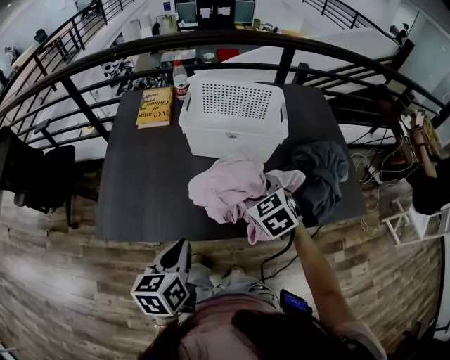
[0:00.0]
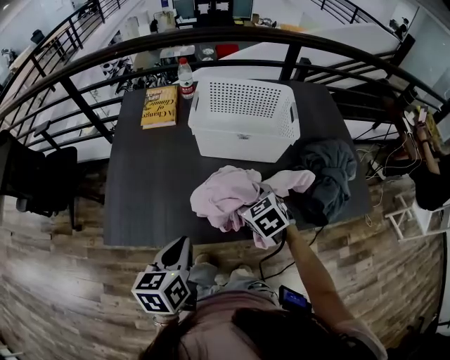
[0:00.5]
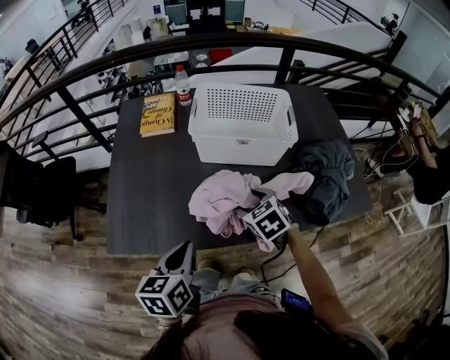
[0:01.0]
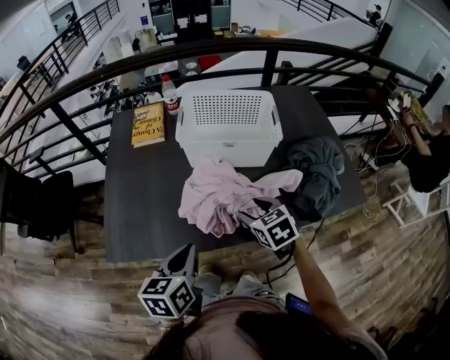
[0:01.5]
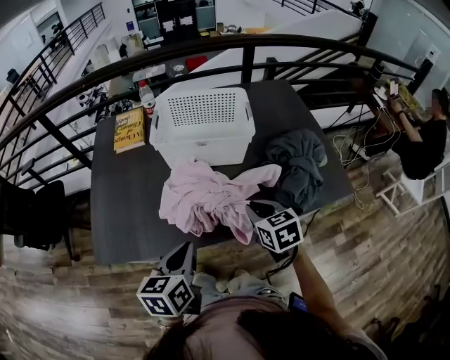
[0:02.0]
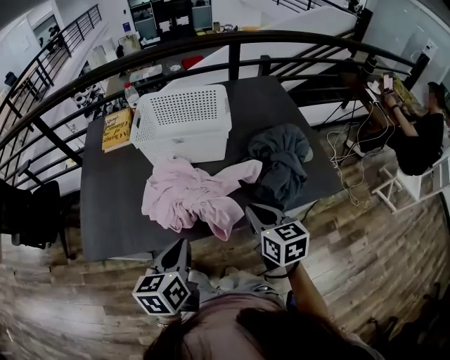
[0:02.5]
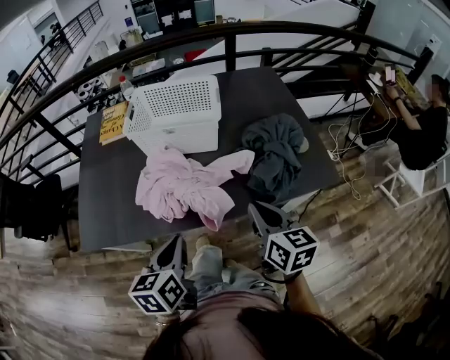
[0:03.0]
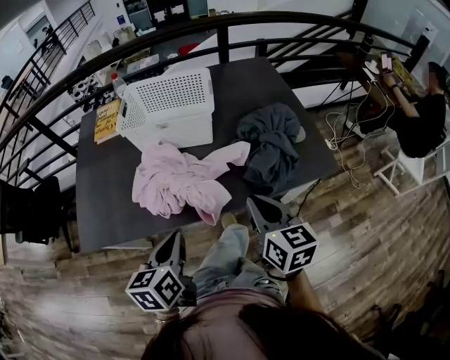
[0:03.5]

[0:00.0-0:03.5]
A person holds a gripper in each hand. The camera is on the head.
0:00.0 to 0:02.0: The right gripper heads to the right and backward, covering roughly 10 cm, and changes its angle by roughly 30 degrees. Meanwhile the left gripper moves to the right, about 5 cm.
0:02.0 to 0:03.5: The right gripper moves to the right, backward and upward, approximately 15 cm, and changes its angle by approximately 20 degrees, while the left gripper moves to the right, approximately 10 cm.

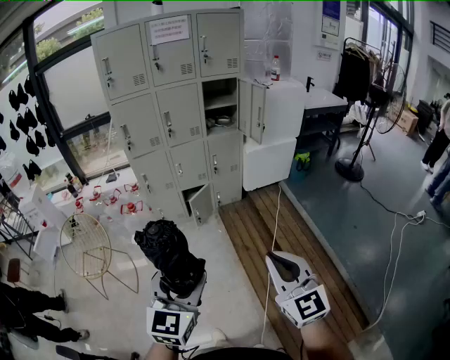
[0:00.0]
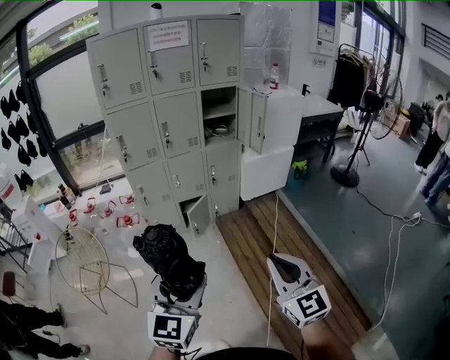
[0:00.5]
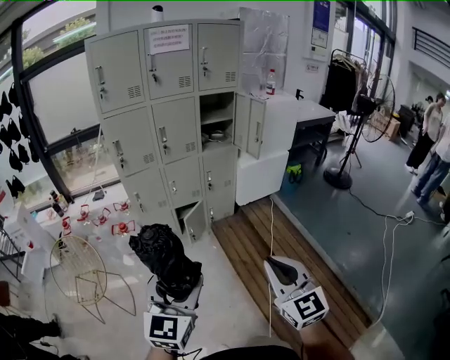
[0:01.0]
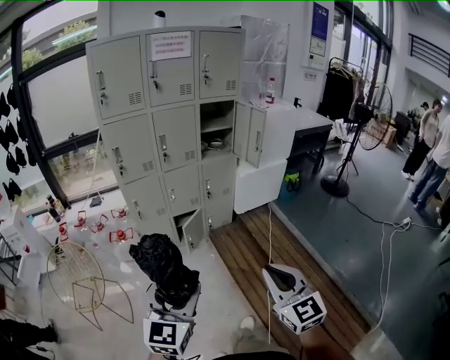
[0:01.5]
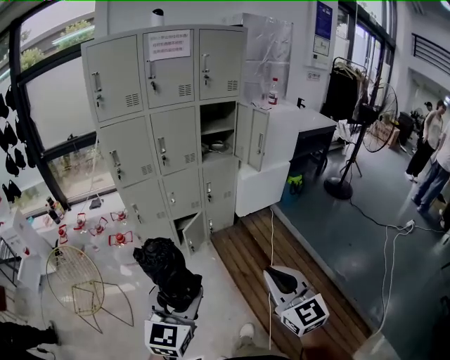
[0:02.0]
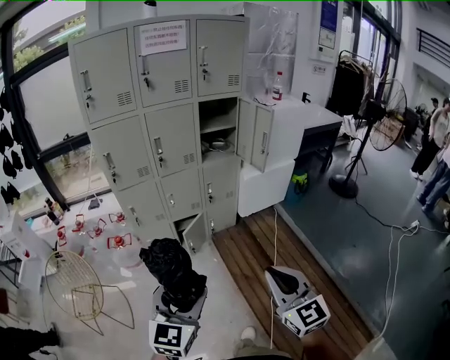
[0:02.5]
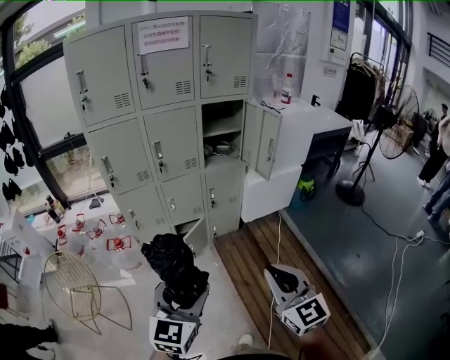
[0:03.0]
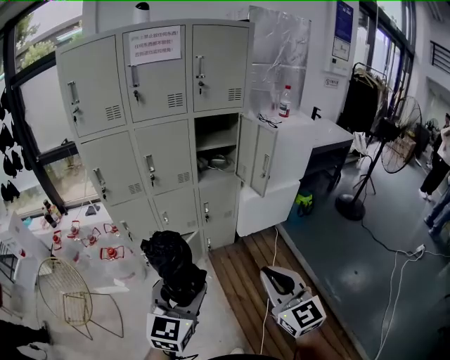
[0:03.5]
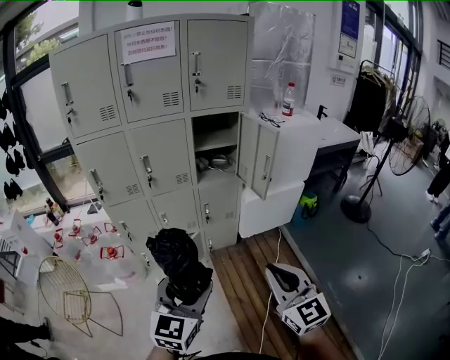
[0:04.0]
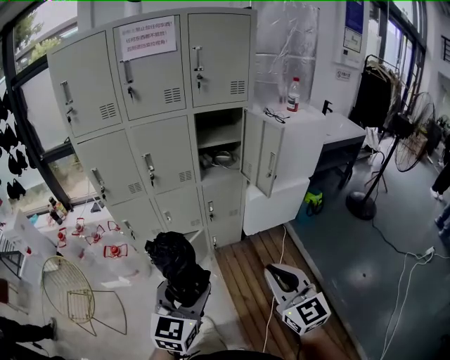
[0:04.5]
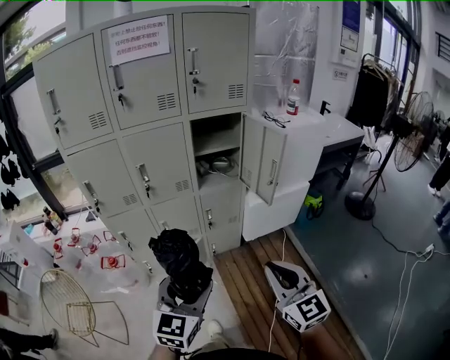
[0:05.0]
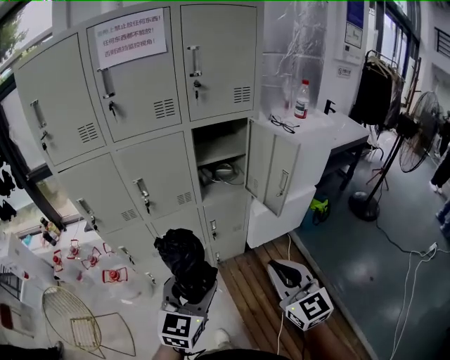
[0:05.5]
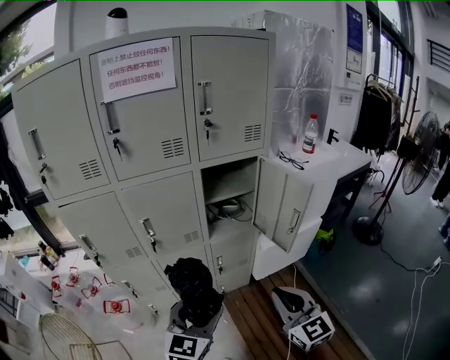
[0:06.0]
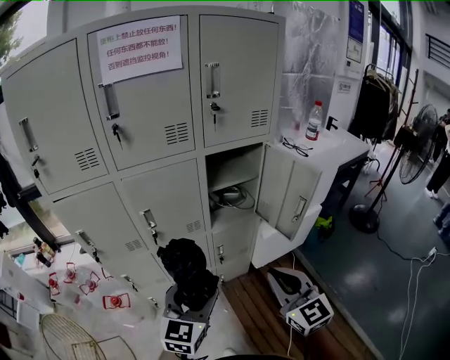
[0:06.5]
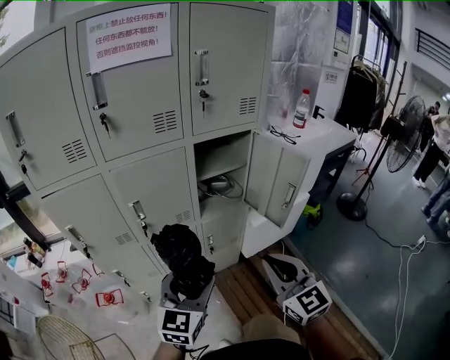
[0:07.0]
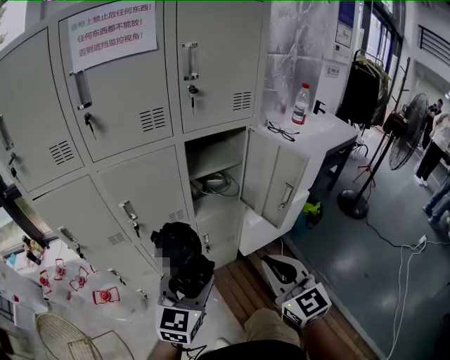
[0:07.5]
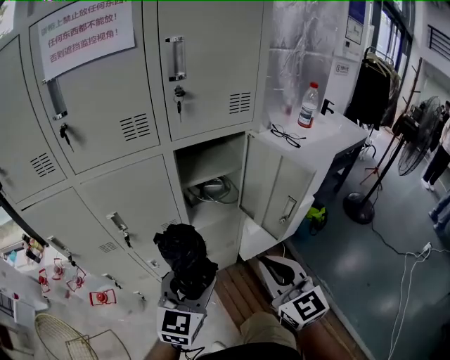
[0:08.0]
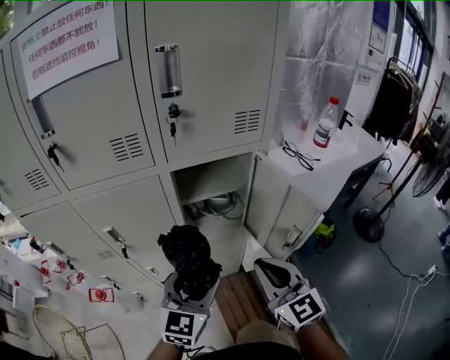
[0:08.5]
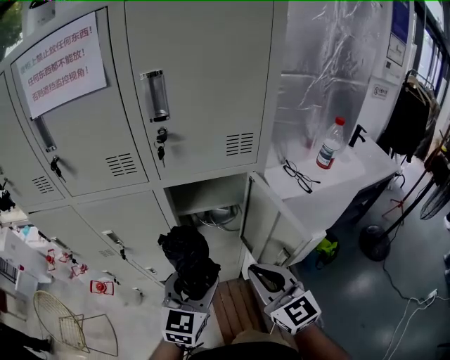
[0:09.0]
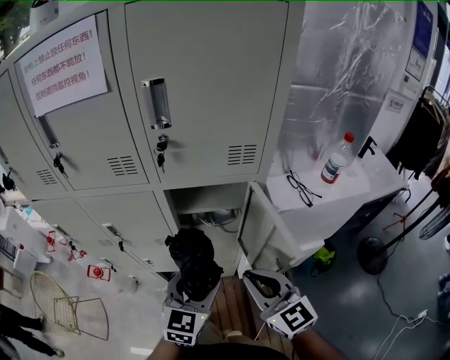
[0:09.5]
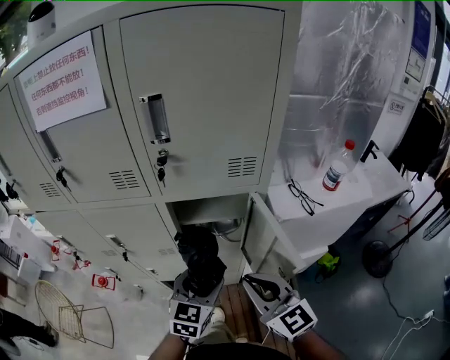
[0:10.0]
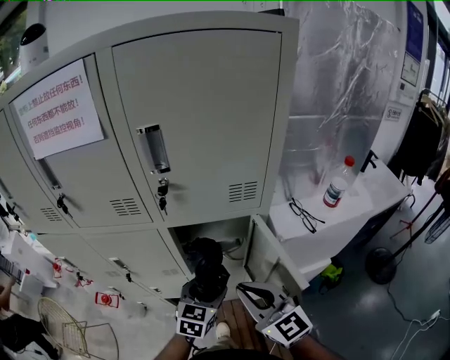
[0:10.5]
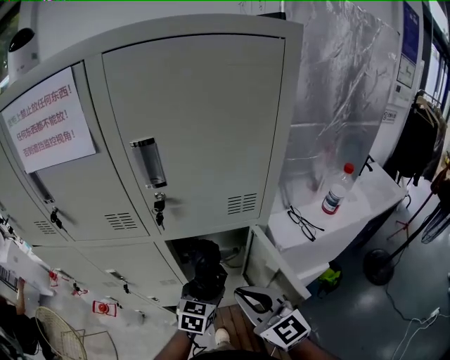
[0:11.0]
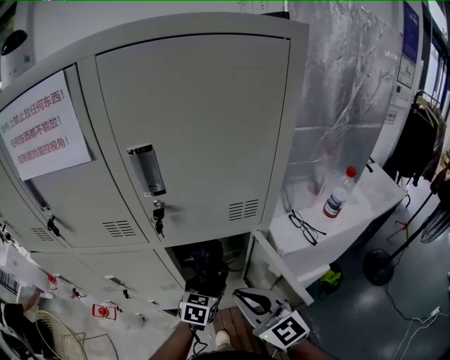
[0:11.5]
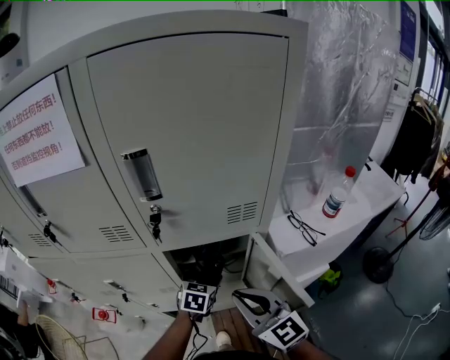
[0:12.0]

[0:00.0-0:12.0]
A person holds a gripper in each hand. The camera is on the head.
0:00.0 to 0:02.0: The grippers both shift forward and to the left by roughly 15 cm.
0:02.0 to 0:04.0: Both grippers move forward and to the right, approximately 30 cm.
0:04.0 to 0:06.0: The two grippers go some 25 cm forward.
0:06.0 to 0:08.0: The grippers both shift forward by roughly 10 cm.
0:08.0 to 0:10.0: The right gripper heads forward, to the right and upward, covering some 15 cm, and changes its angle by roughly 30 degrees, while the left gripper travels forward and to the right by approximately 20 cm.
0:10.0 to 0:12.0: The right gripper is displaced forward by approximately 10 cm. Meanwhile the left gripper heads forward and downward, covering roughly 20 cm.

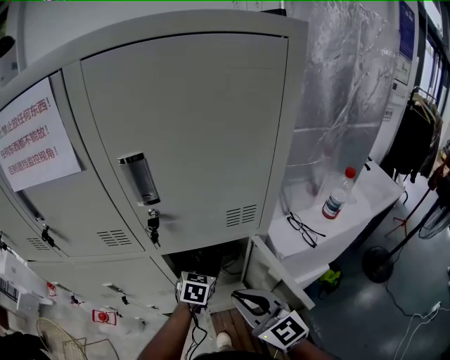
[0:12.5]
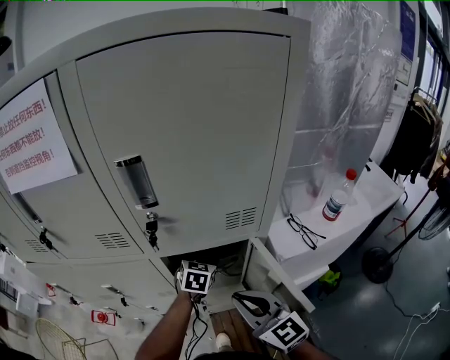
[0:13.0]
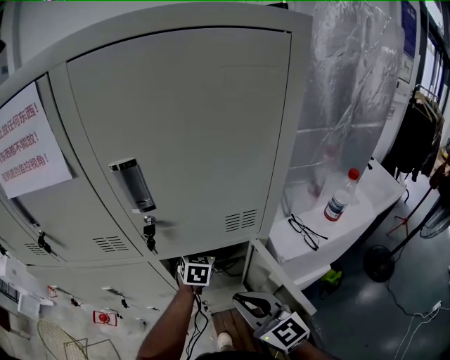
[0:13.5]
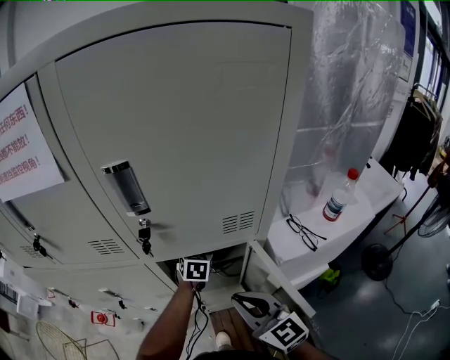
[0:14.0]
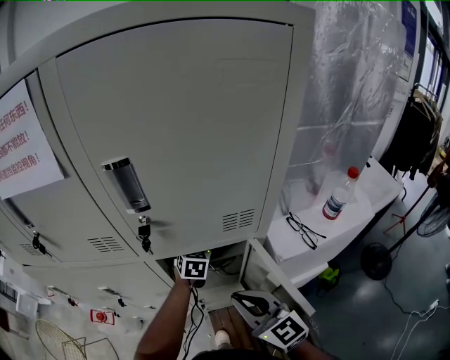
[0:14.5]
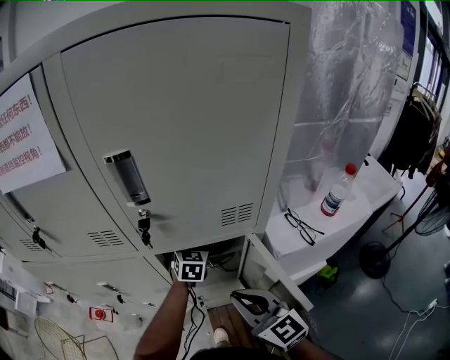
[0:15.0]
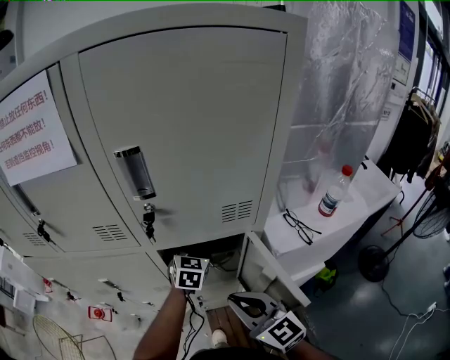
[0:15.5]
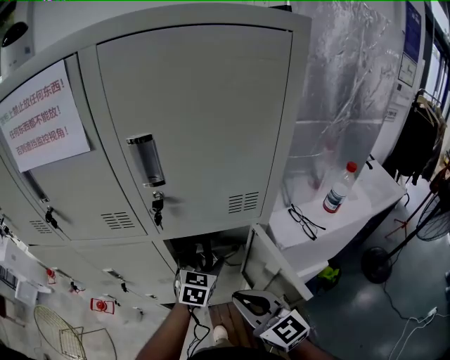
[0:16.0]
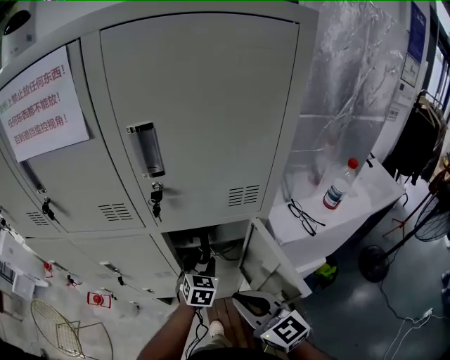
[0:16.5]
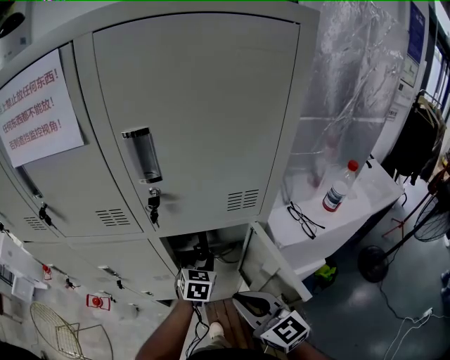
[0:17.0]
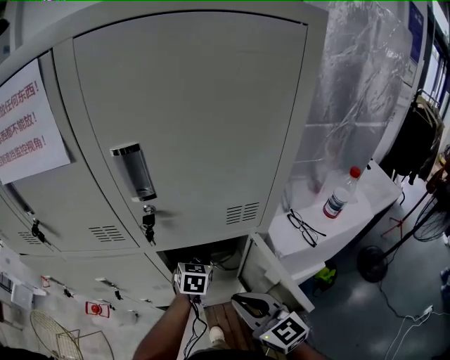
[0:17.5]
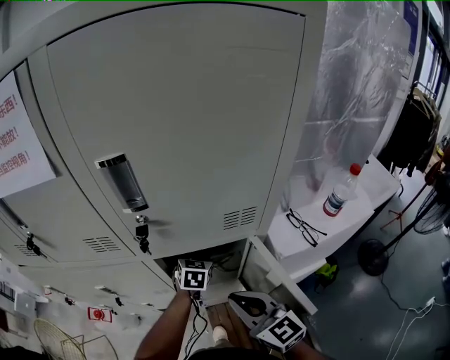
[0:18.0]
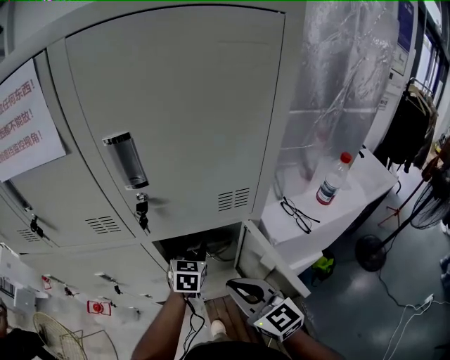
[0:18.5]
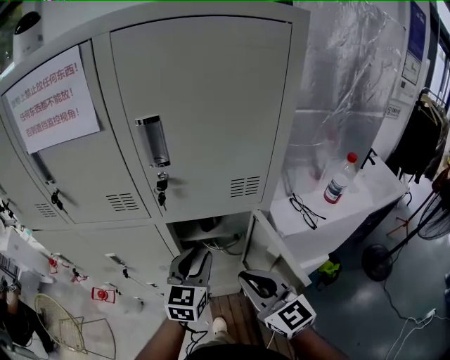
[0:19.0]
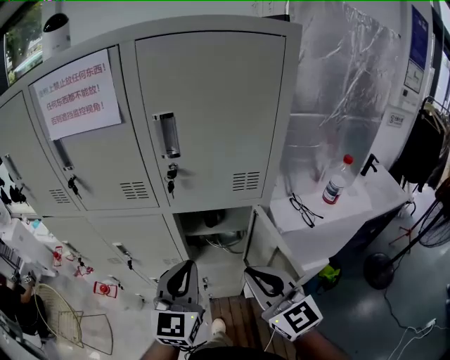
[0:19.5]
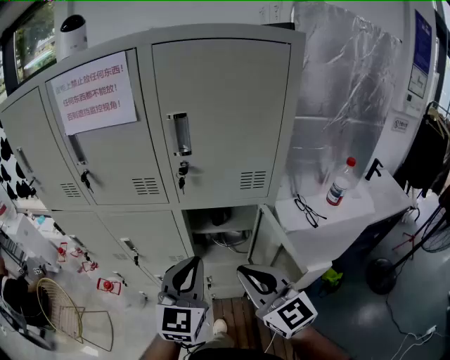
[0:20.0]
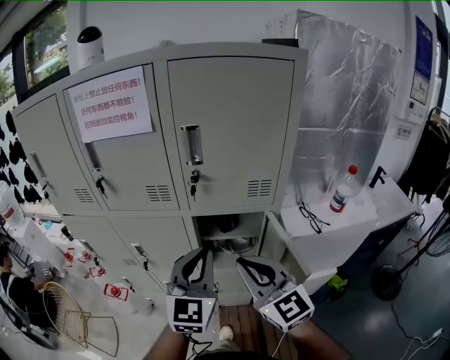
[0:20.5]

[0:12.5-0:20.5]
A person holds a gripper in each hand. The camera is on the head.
0:12.5 to 0:14.5: The left gripper travels forward by roughly 10 cm.
0:14.5 to 0:16.5: The right gripper travels backward by roughly 5 cm. Meanwhile the left gripper heads backward, covering about 15 cm, and closes its fingers.
0:16.5 to 0:18.5: The left gripper heads forward, covering about 5 cm.
0:18.5 to 0:20.5: The right gripper heads upward and backward, covering some 15 cm, while the left gripper shifts about 30 cm upward and backward, swivels about 30 degrees, and closes up.

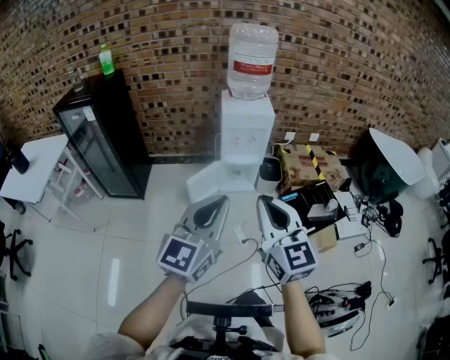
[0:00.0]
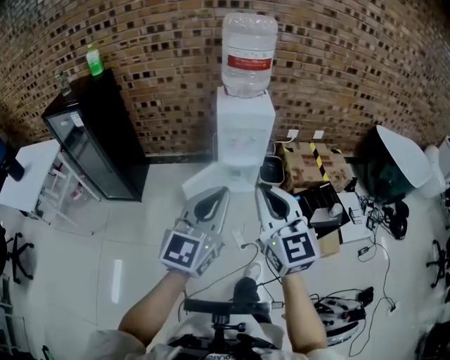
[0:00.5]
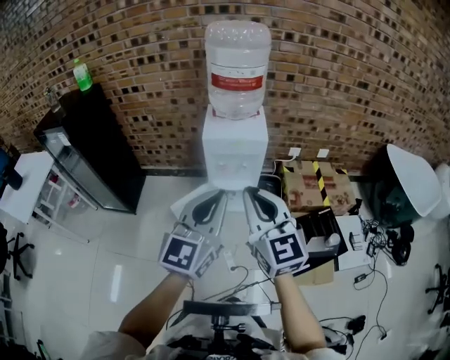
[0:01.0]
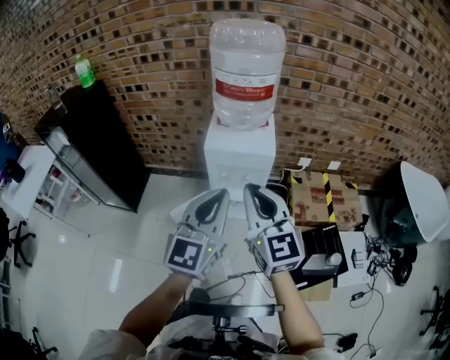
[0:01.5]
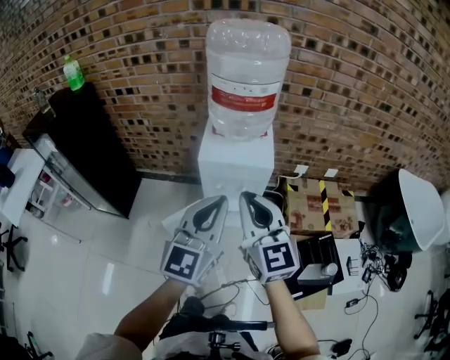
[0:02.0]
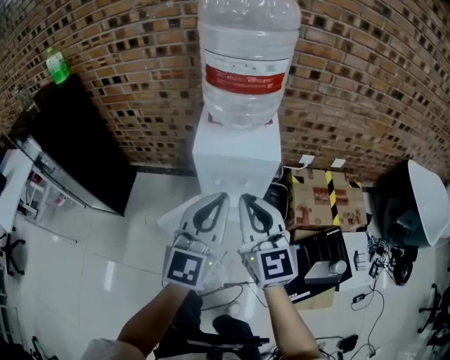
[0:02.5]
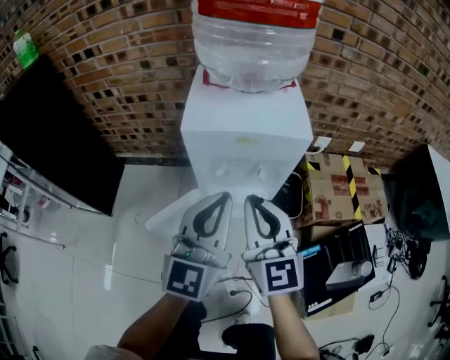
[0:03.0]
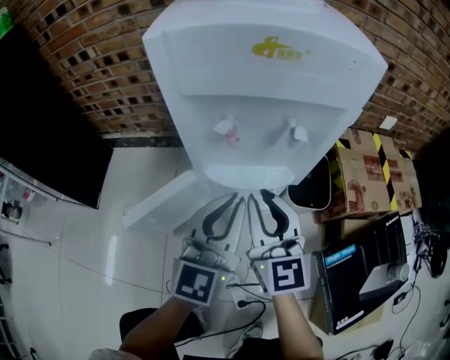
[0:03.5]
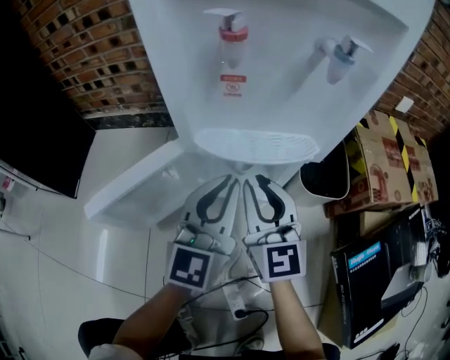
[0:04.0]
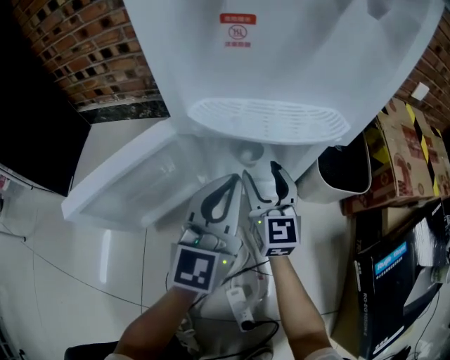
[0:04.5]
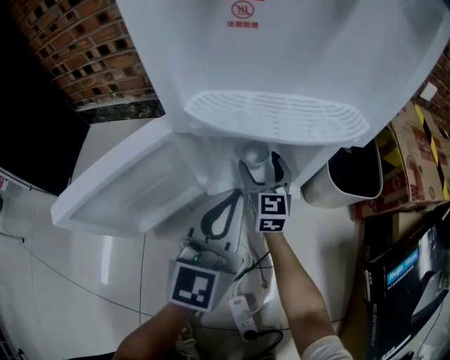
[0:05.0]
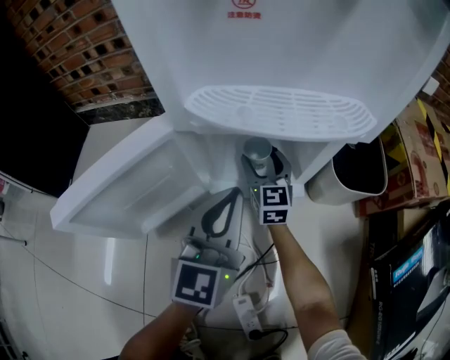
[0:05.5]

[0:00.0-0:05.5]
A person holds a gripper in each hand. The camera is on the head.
0:00.0 to 0:02.0: The pair of grippers is taken forward, some 40 cm.
0:02.0 to 0:03.5: The two grippers go about 50 cm downward.
0:03.5 to 0:05.5: The right gripper is displaced downward and forward by some 40 cm, and opens up. The left gripper goes roughly 30 cm downward.
